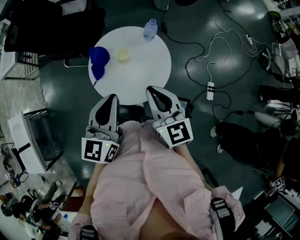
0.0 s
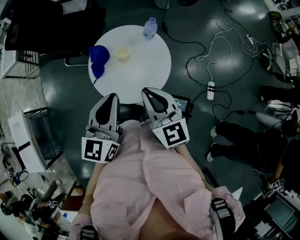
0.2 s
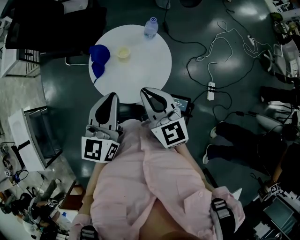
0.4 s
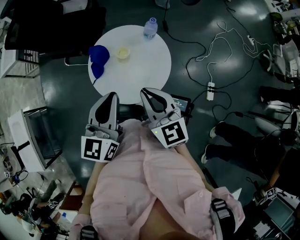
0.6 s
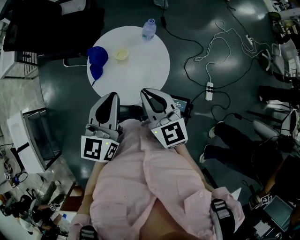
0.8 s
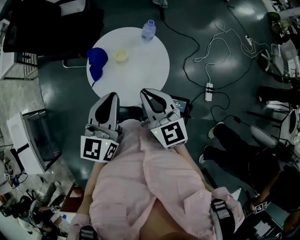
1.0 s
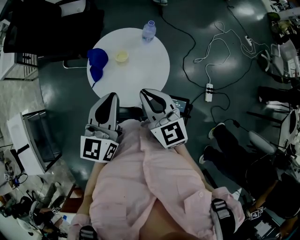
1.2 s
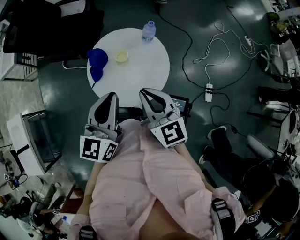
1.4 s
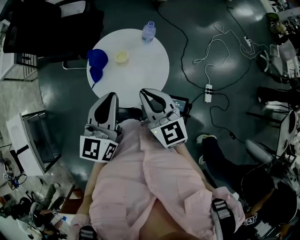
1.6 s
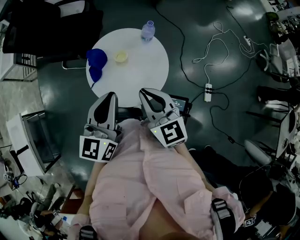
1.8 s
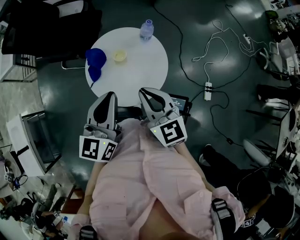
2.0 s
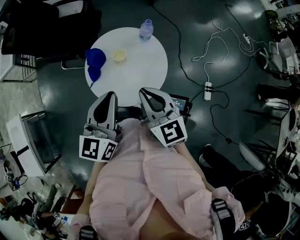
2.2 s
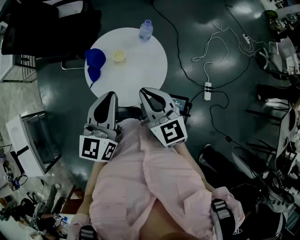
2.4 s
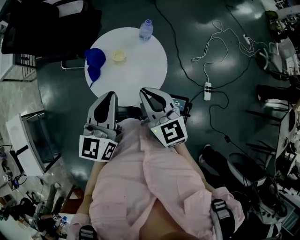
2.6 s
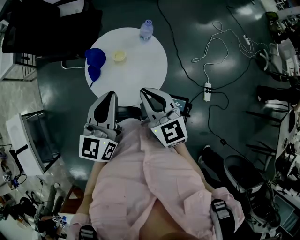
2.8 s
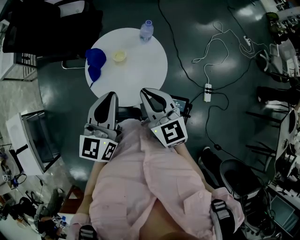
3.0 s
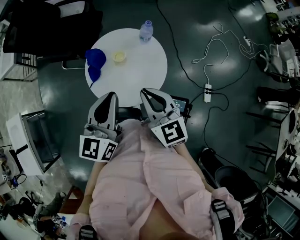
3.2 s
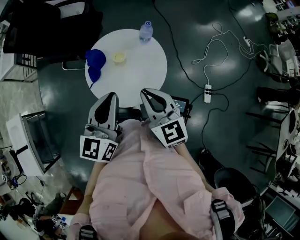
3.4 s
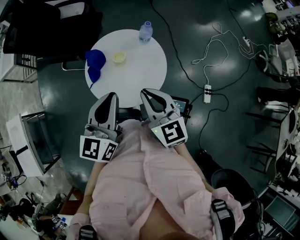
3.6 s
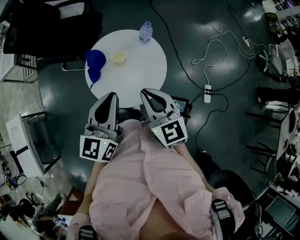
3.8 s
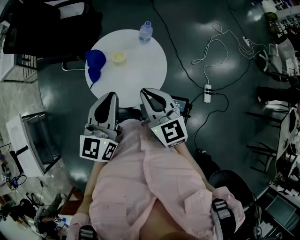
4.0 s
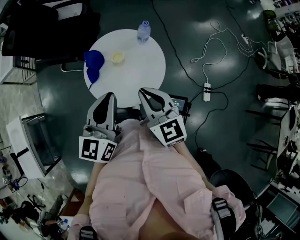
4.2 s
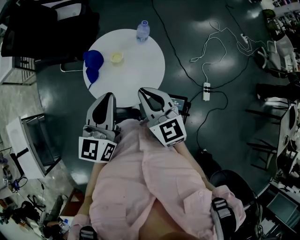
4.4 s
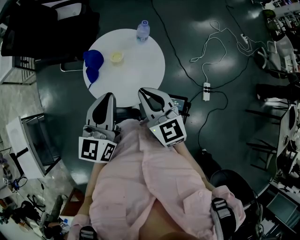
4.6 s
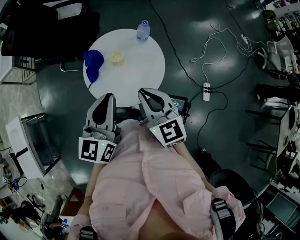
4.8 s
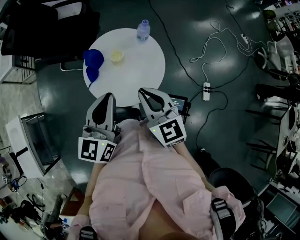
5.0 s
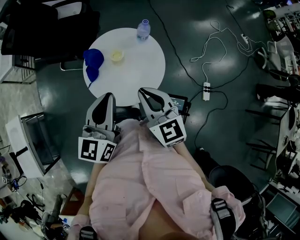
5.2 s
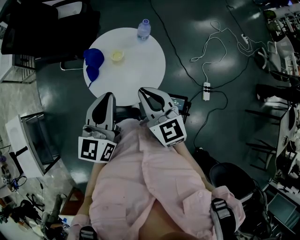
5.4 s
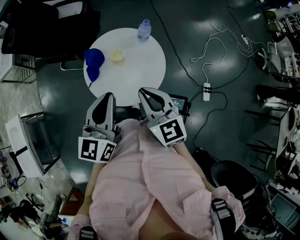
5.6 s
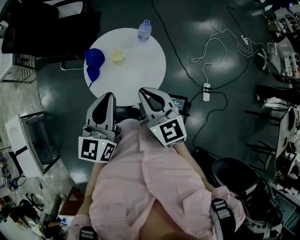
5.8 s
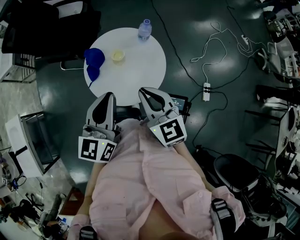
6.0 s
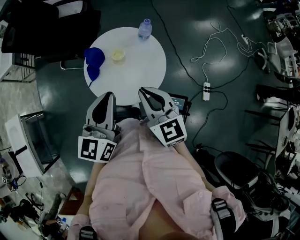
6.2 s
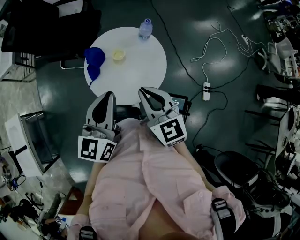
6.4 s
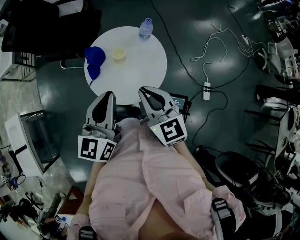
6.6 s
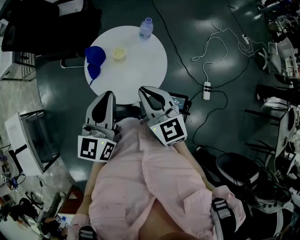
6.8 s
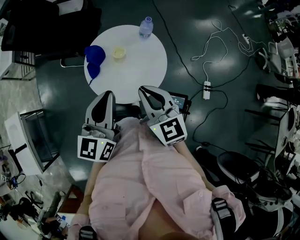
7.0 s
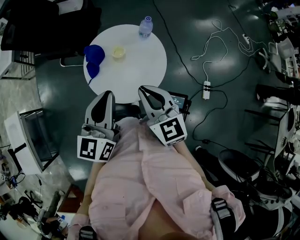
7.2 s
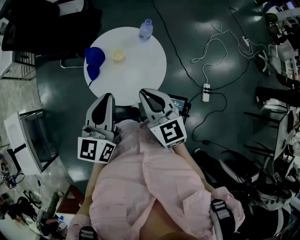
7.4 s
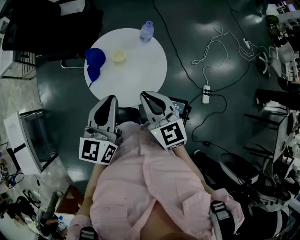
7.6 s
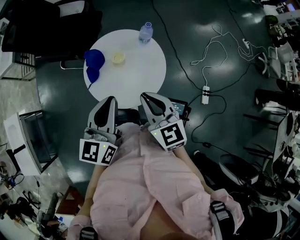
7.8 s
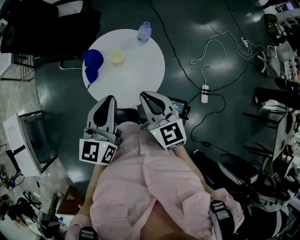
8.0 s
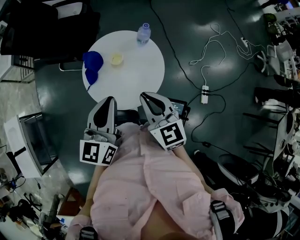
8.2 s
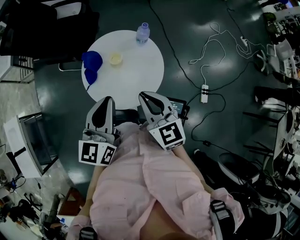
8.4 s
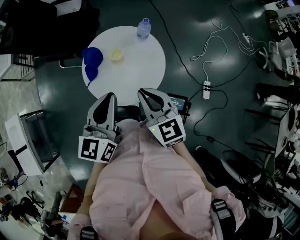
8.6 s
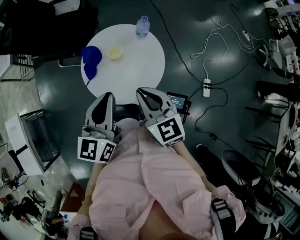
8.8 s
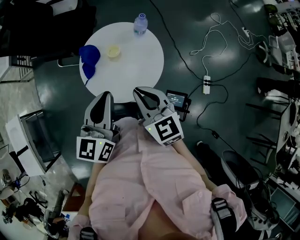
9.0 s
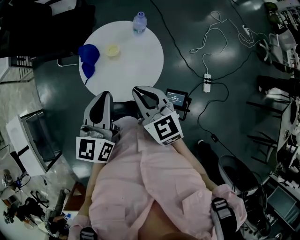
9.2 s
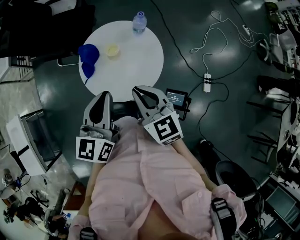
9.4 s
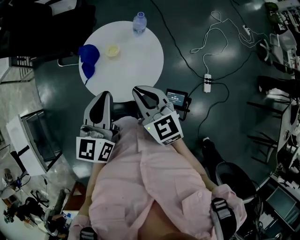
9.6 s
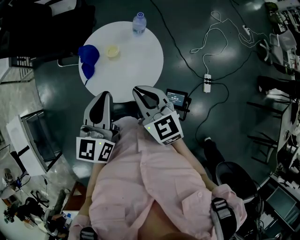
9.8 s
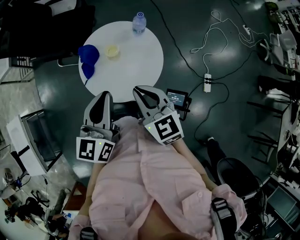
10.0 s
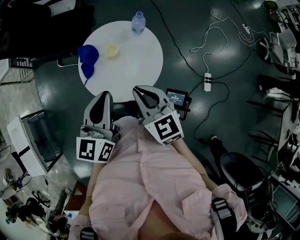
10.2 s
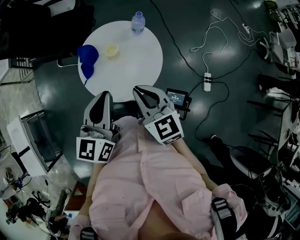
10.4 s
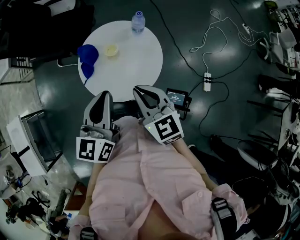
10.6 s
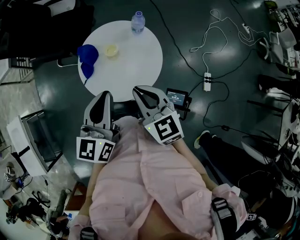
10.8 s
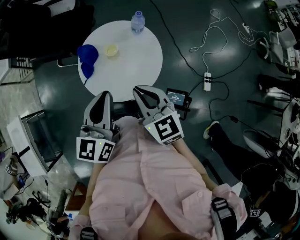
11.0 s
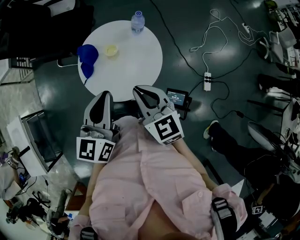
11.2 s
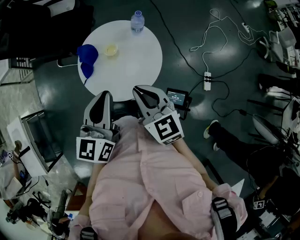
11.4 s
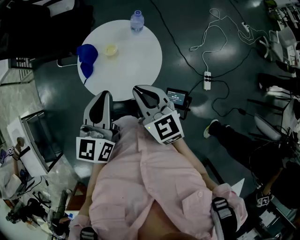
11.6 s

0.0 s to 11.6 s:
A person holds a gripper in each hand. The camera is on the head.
0.0 to 1.4 s: The grippers make only small movements.
1.4 to 2.8 s: Both grippers stay put.
2.8 to 7.2 s: Both grippers stay put.
7.2 to 8.8 s: The grippers stay close to where they were, moving slightly.
8.8 to 11.6 s: Neither gripper changes place.

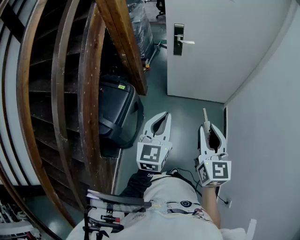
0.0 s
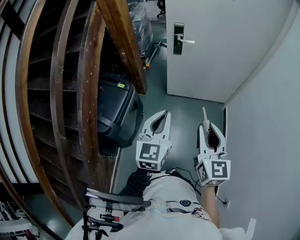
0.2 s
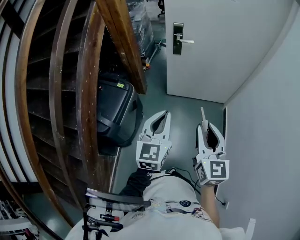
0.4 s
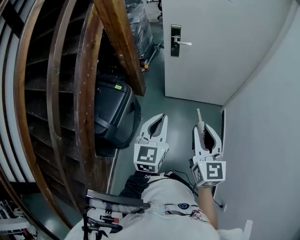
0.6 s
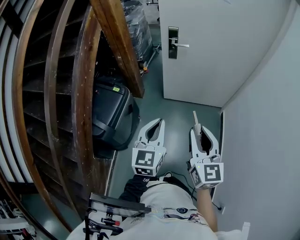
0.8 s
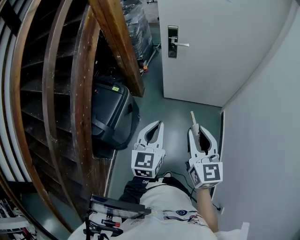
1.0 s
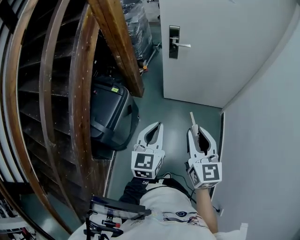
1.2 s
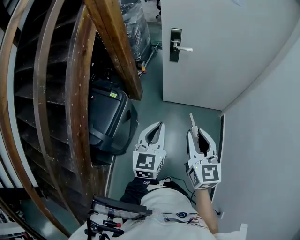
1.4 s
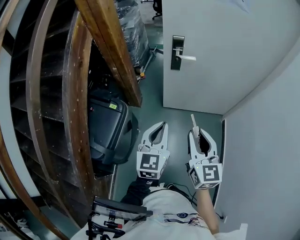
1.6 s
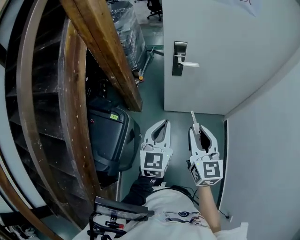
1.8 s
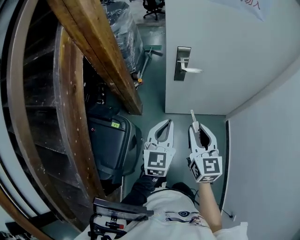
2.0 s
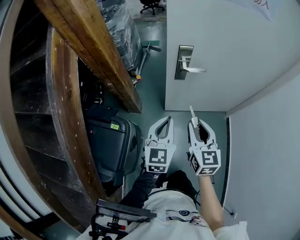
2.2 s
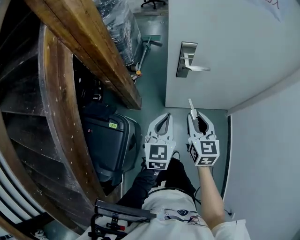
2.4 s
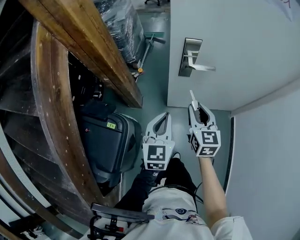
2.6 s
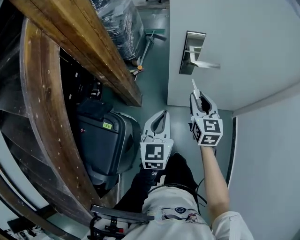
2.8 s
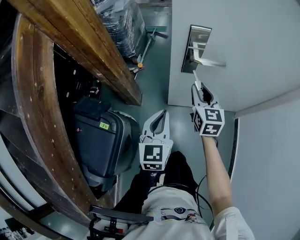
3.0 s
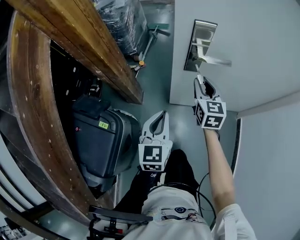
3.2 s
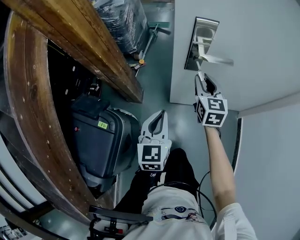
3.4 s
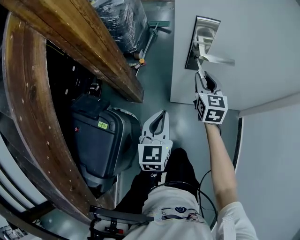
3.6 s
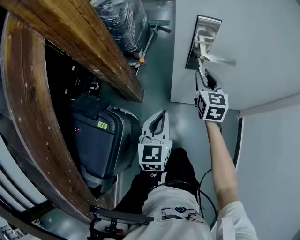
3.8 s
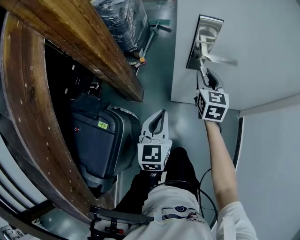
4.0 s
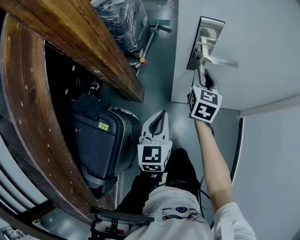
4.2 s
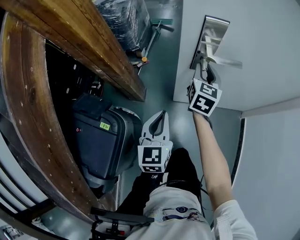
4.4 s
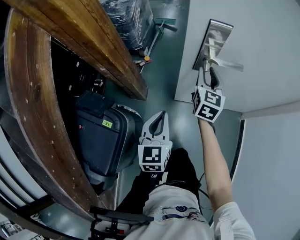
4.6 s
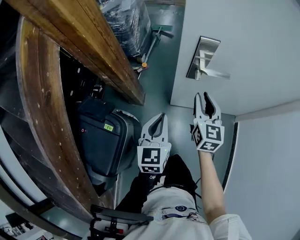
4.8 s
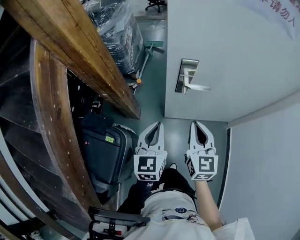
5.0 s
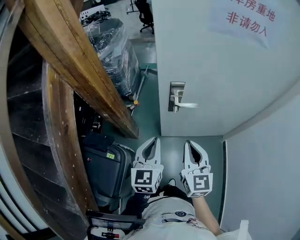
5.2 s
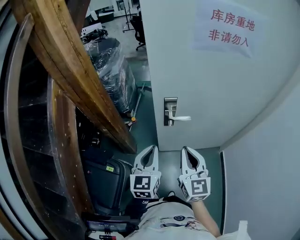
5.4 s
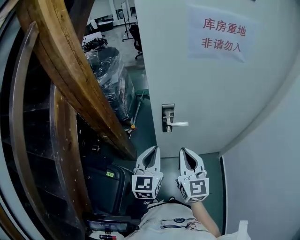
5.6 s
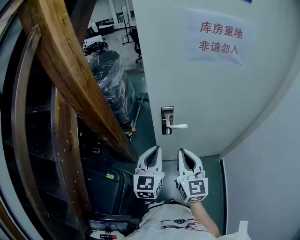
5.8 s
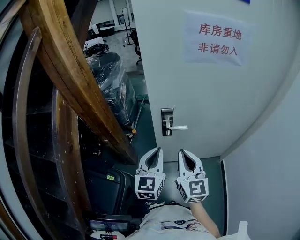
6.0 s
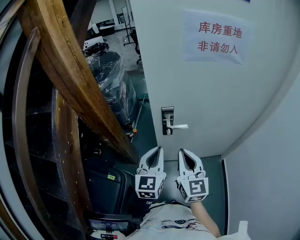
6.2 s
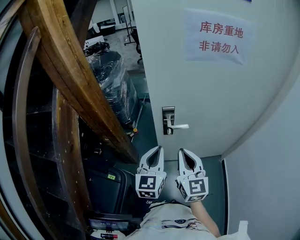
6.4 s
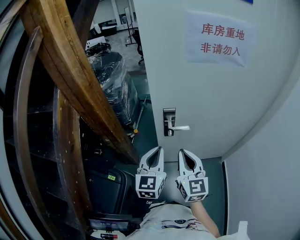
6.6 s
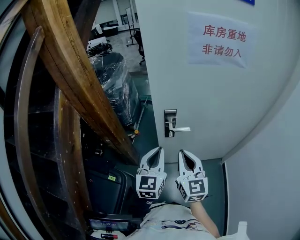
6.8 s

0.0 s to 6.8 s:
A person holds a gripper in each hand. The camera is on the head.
0.0 to 1.4 s: The right gripper is displaced forward by approximately 10 cm. Meanwhile the left gripper goes about 10 cm forward and downward.
1.4 to 2.8 s: Both grippers travel together forward, approximately 40 cm.
2.8 to 4.0 s: The right gripper shifts about 15 cm forward and downward, while the left gripper moves downward, some 10 cm.
4.0 to 5.4 s: The right gripper moves upward and backward, roughly 35 cm, and closes its fingers. Meanwhile the left gripper heads upward, covering some 25 cm.
5.4 to 6.8 s: There are only small adjustments of the grippers.

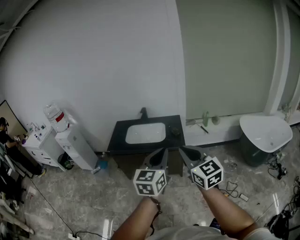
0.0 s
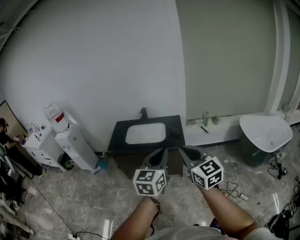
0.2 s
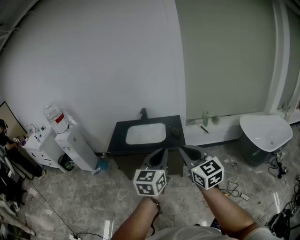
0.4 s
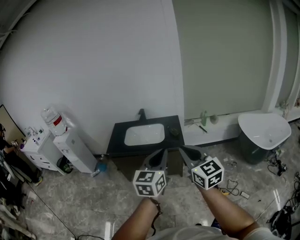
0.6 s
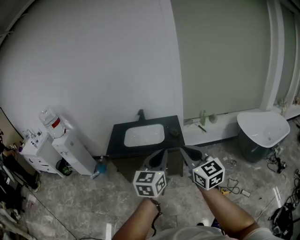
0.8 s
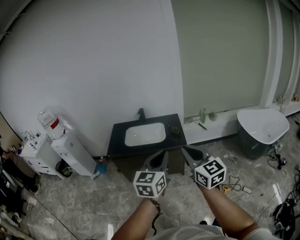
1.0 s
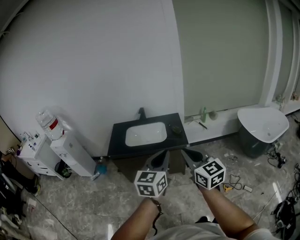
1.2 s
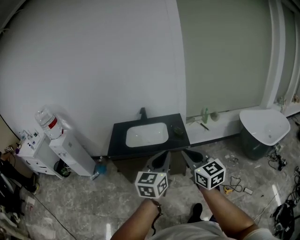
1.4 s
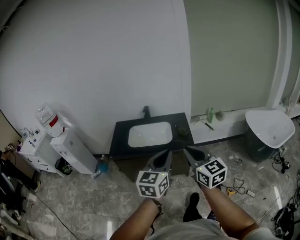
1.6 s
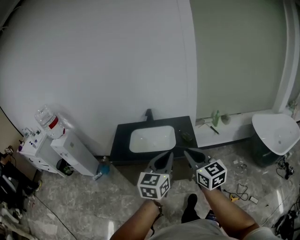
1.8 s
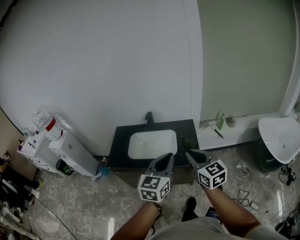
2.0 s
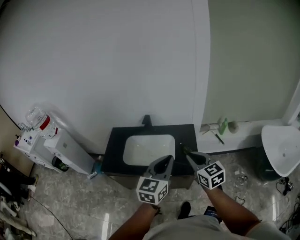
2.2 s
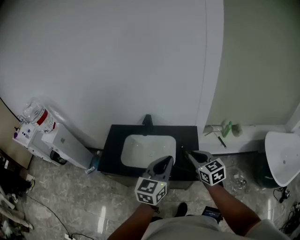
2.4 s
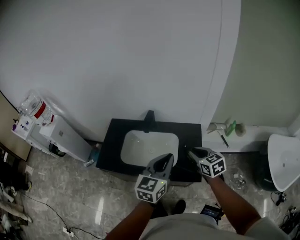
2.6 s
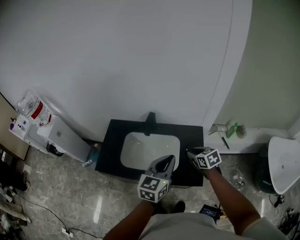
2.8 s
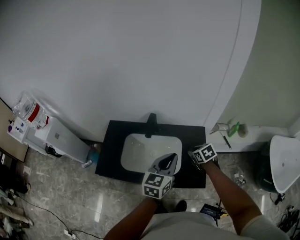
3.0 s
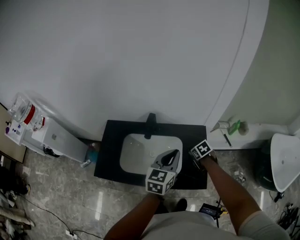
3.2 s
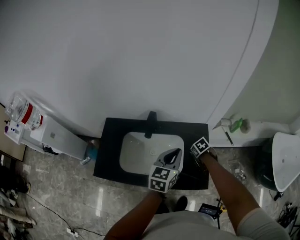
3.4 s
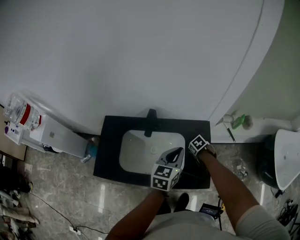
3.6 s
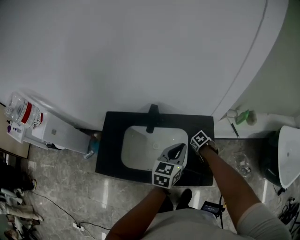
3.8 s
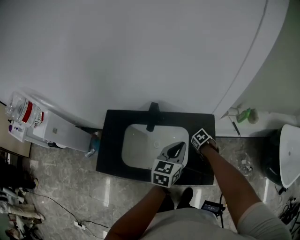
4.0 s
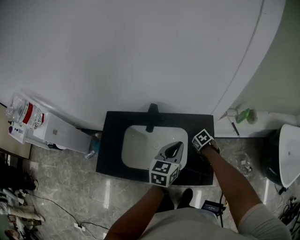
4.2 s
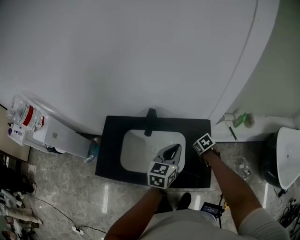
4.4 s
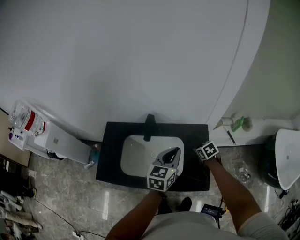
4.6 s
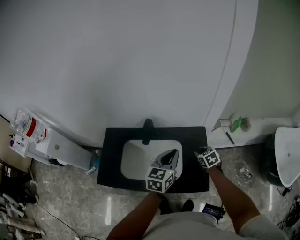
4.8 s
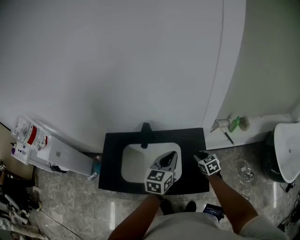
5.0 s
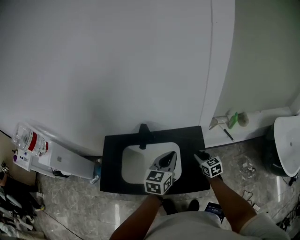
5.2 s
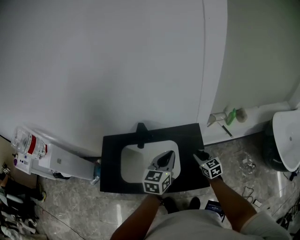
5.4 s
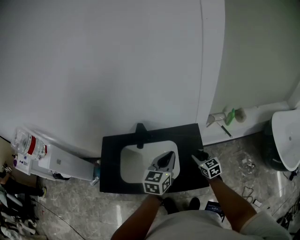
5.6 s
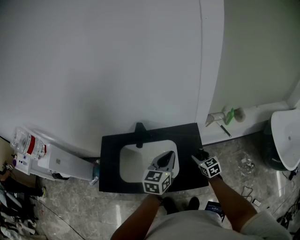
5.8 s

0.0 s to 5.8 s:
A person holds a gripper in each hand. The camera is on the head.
0.0 to 1.4 s: The left gripper is displaced to the left and forward by about 10 cm. The right gripper moves forward and to the left, about 10 cm.
1.4 to 2.8 s: The pair of grippers is taken forward, about 50 cm. The right gripper goes approximately 30 cm downward, angles its fingers downward, by approximately 40 degrees, and opens up.
2.8 to 4.4 s: The right gripper heads downward, covering approximately 15 cm, and swivels some 30 degrees. Meanwhile the left gripper ends up about 15 cm from where it was.
4.4 to 5.8 s: The right gripper goes approximately 10 cm upward, backward and to the right, and points its fingers about 40 degrees further upward, while the left gripper changes place by some 5 cm.
